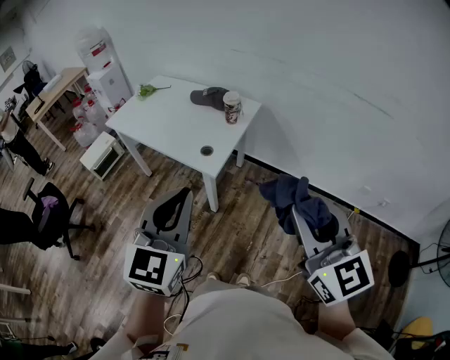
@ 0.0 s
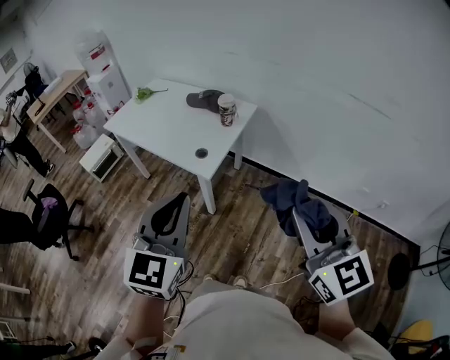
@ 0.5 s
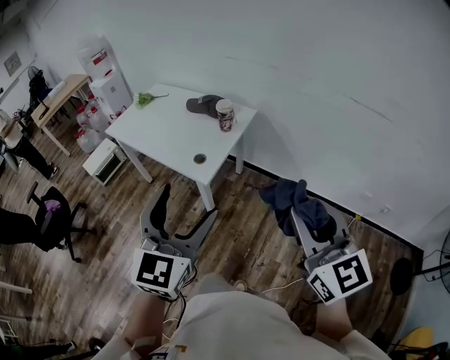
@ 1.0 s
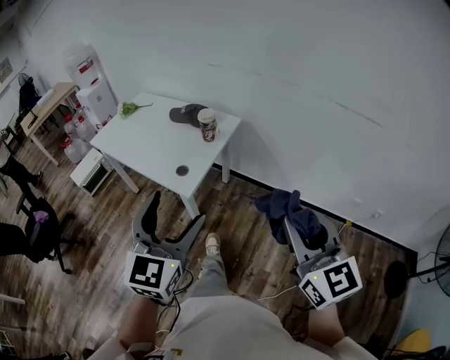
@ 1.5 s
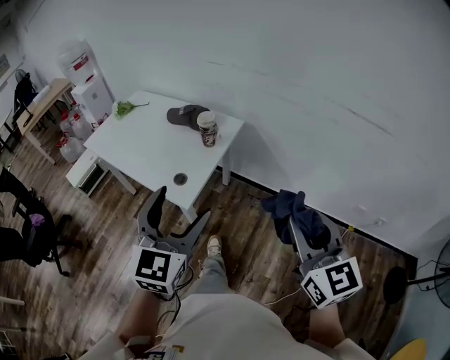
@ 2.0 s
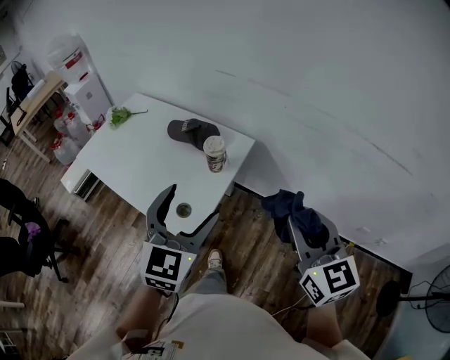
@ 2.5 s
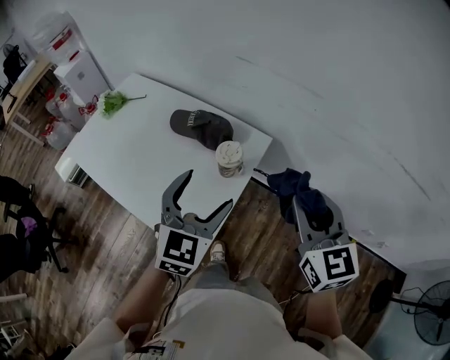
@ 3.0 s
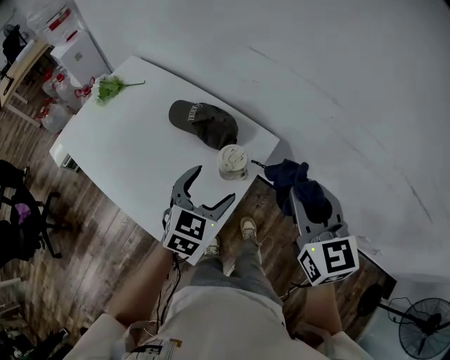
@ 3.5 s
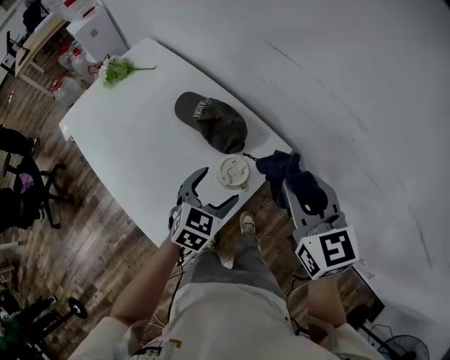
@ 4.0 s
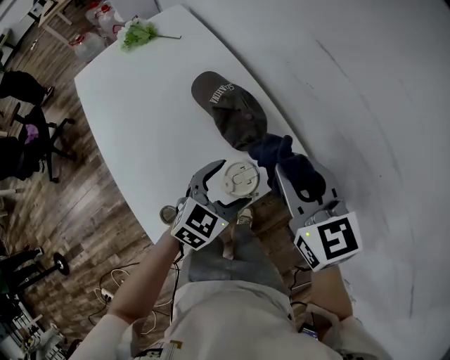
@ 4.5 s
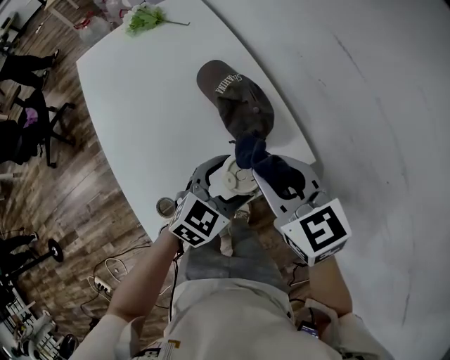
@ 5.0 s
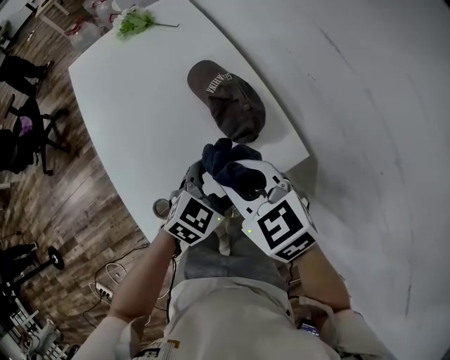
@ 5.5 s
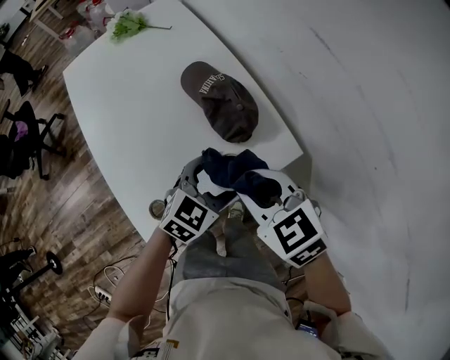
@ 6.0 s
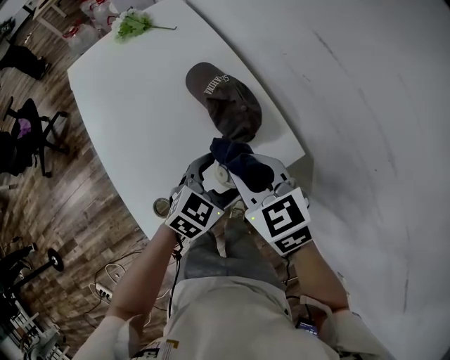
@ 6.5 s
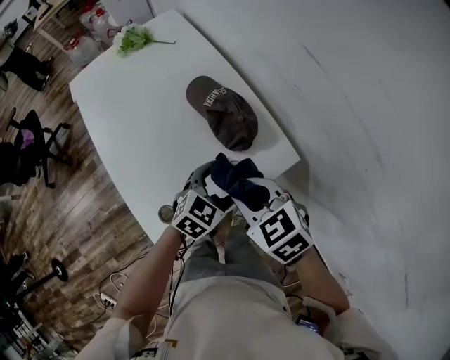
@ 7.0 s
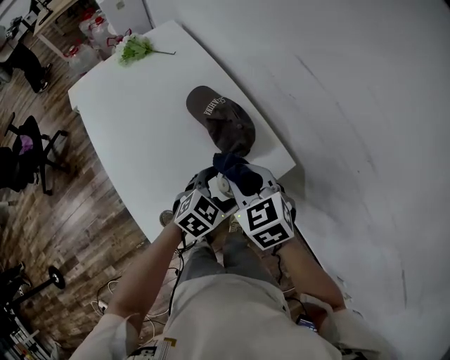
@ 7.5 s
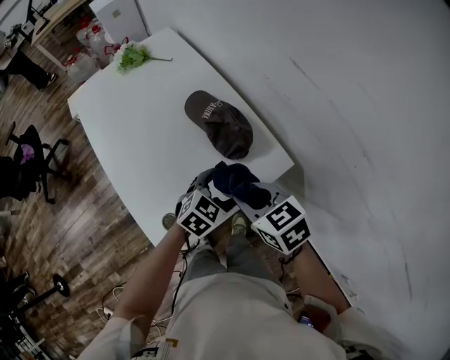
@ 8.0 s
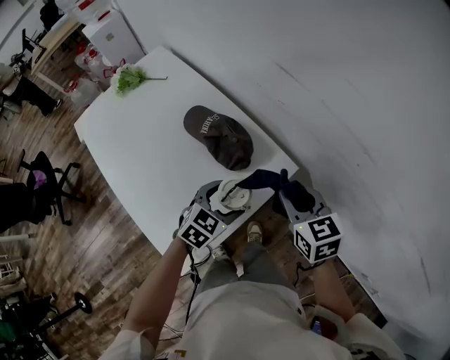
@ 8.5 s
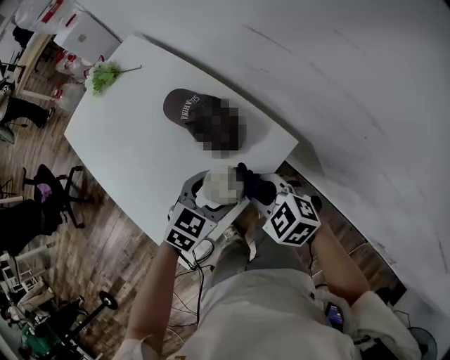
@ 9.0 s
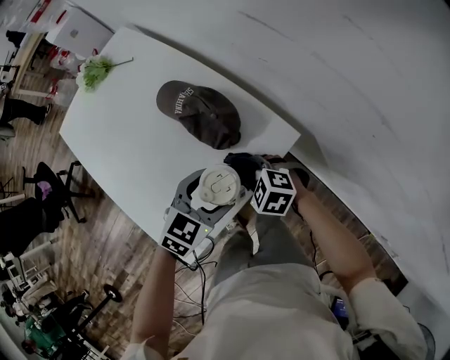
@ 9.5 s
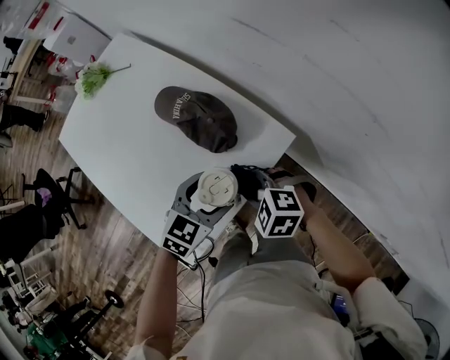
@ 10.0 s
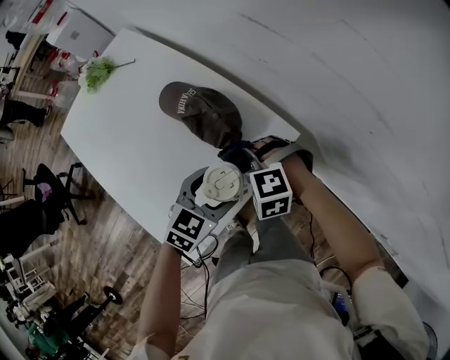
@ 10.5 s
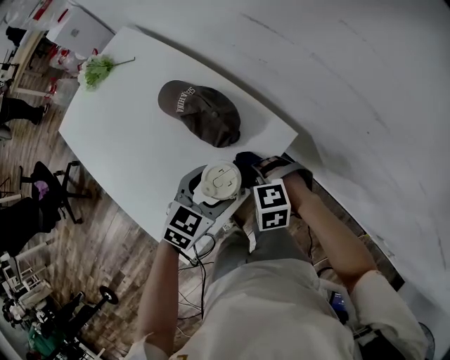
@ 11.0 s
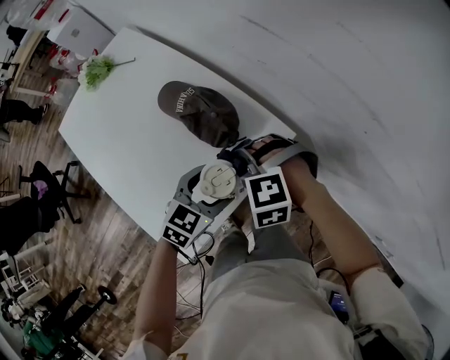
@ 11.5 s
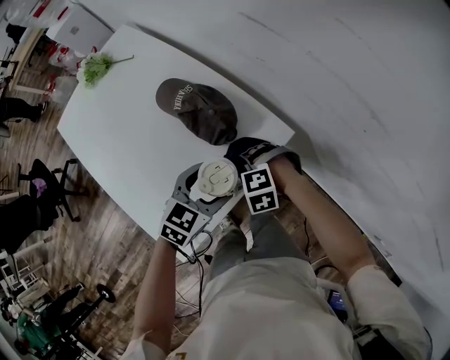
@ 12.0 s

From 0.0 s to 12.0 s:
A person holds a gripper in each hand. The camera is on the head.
From 0.0 s to 2.0 s: The left gripper heads forward and to the right, covering roughly 20 cm, and opens up, while the right gripper shifts approximately 20 cm forward, to the right and downward.
From 2.0 s to 4.0 s: Both grippers are carried forward, some 50 cm. The left gripper is displaced downward by some 25 cm, and points its fingers approximately 30 degrees further downward; the right gripper changes its angle by approximately 20 degrees.
From 4.0 s to 6.0 s: The right gripper moves downward and to the left, approximately 15 cm, and turns by some 50 degrees.
From 6.0 s to 8.0 s: The grippers stay close to where they were, moving slightly.
From 8.0 s to 10.0 s: The right gripper goes some 10 cm downward, and turns by approximately 30 degrees.
From 10.0 s to 12.0 s: The right gripper moves up and down over approximately 10 cm, changing direction 2 times, and swivels some 30 degrees.

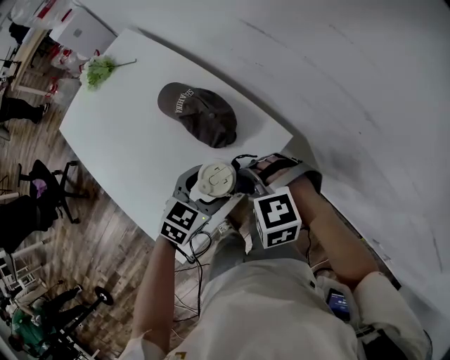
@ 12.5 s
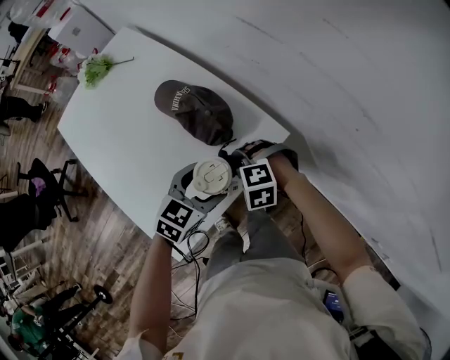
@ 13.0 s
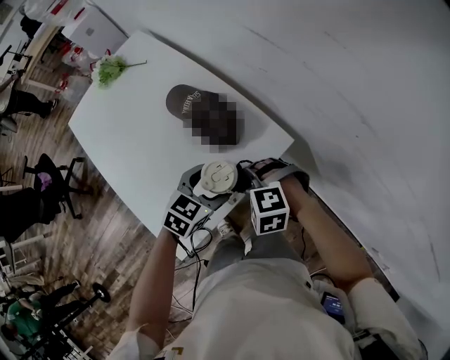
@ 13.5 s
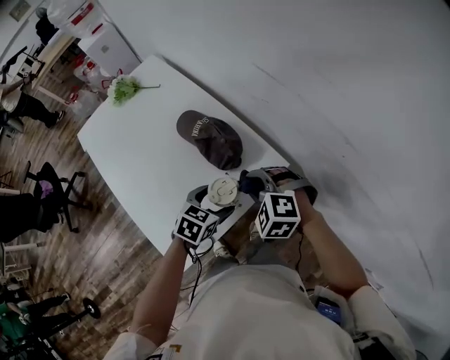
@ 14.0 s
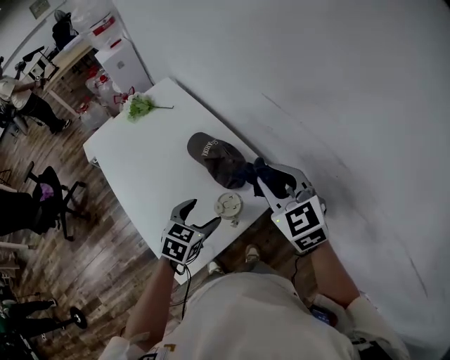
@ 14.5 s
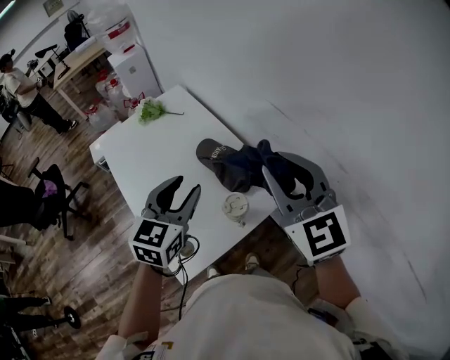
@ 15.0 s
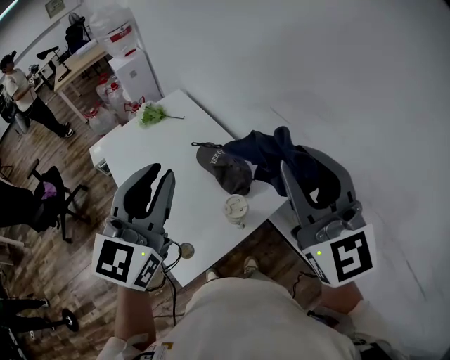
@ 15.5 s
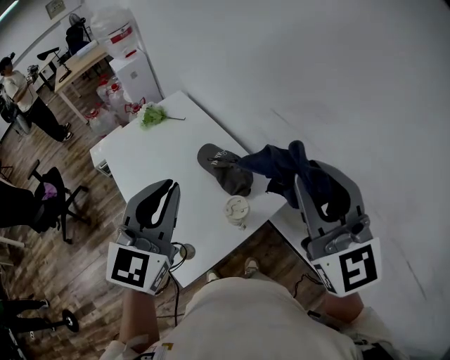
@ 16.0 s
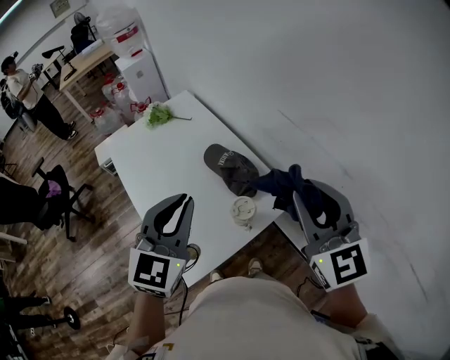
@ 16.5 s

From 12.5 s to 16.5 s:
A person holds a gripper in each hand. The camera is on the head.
From 12.5 s to 14.5 s: The left gripper is displaced to the left and upward by some 10 cm, while the right gripper goes roughly 20 cm upward, and tips its fingers upward by some 40 degrees.
From 14.5 s to 16.5 s: The right gripper heads upward and backward, covering some 15 cm, and rotates roughly 20 degrees; the left gripper goes about 25 cm upward, tilts its fingers approximately 30 degrees upward, and closes up.

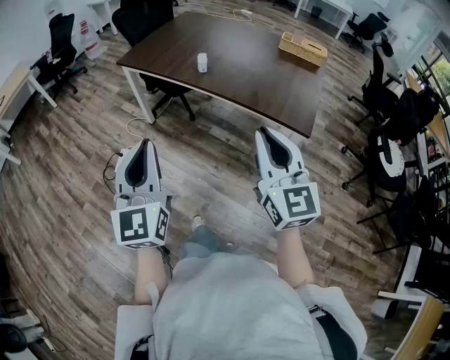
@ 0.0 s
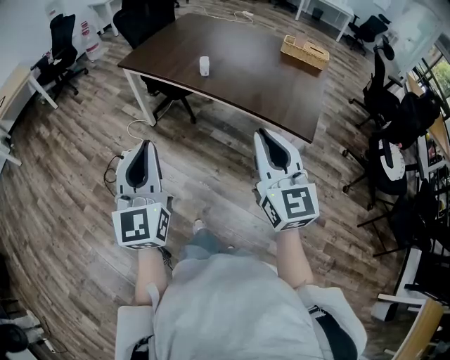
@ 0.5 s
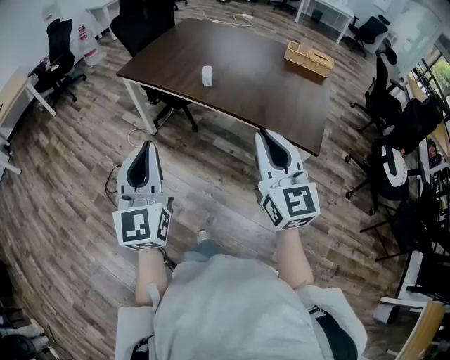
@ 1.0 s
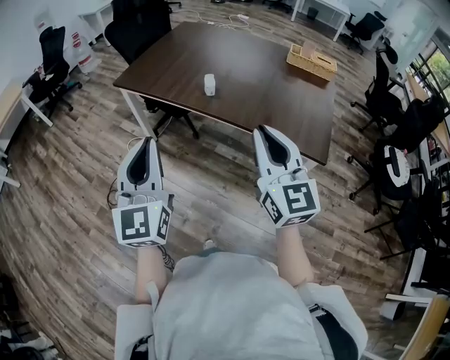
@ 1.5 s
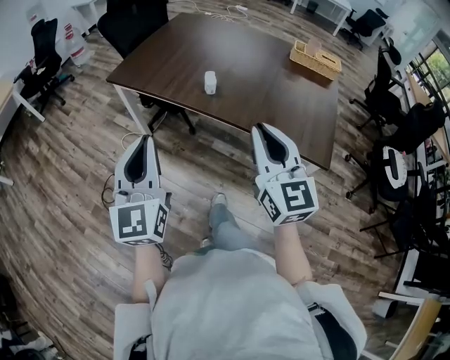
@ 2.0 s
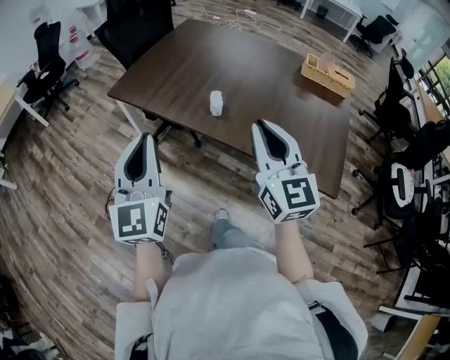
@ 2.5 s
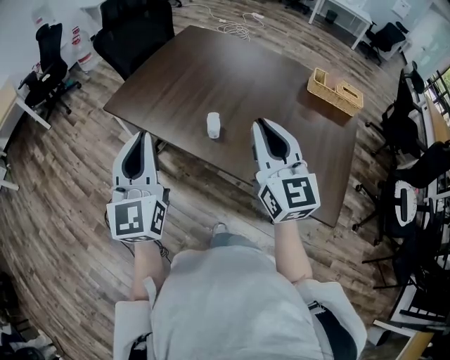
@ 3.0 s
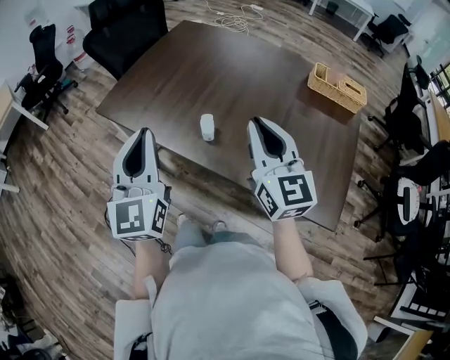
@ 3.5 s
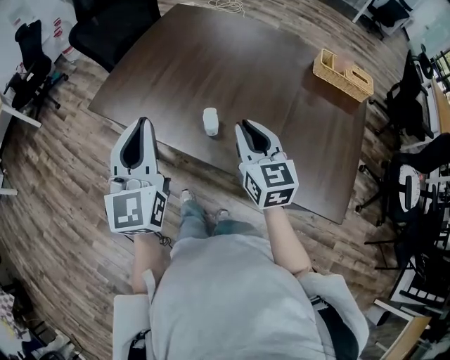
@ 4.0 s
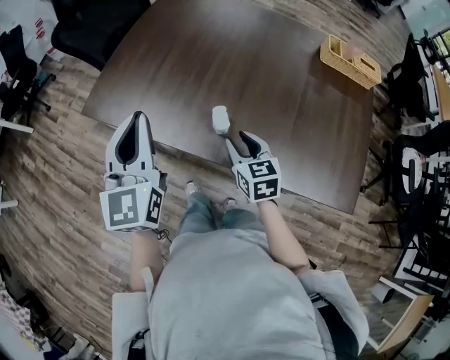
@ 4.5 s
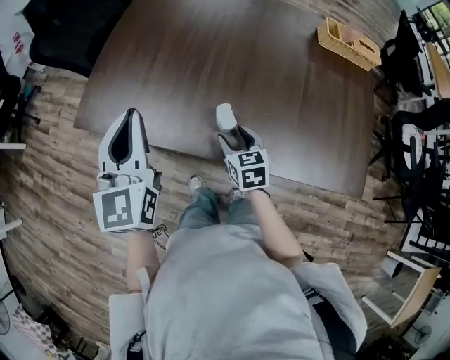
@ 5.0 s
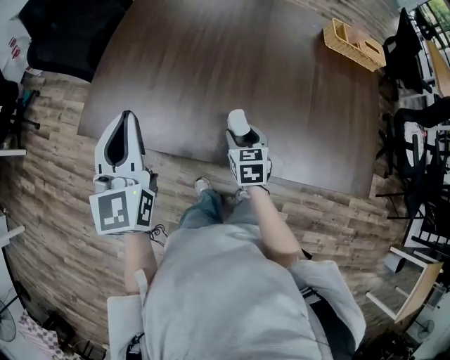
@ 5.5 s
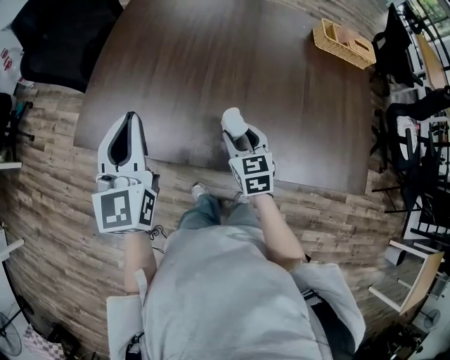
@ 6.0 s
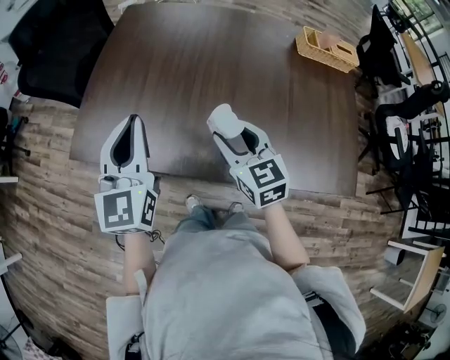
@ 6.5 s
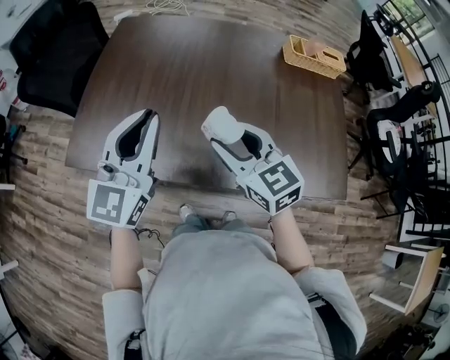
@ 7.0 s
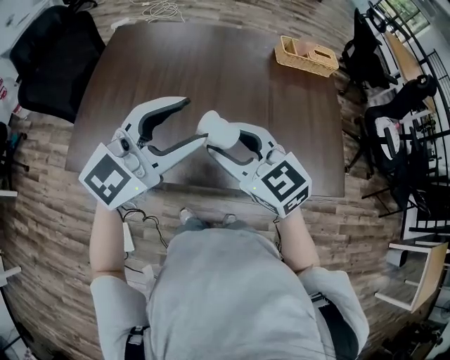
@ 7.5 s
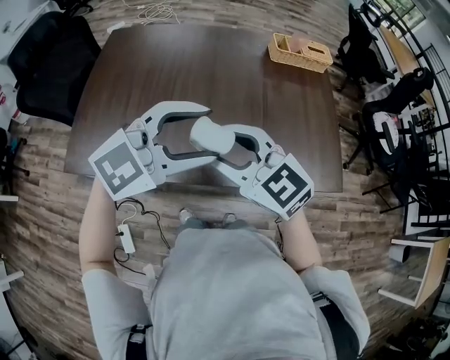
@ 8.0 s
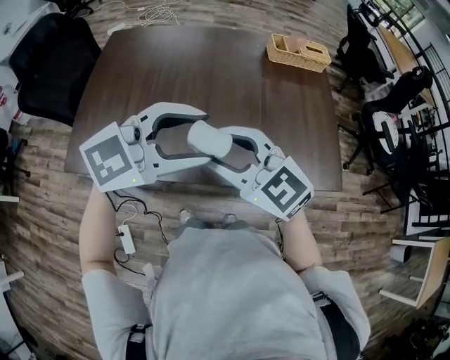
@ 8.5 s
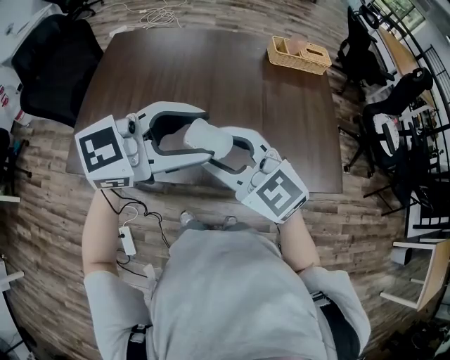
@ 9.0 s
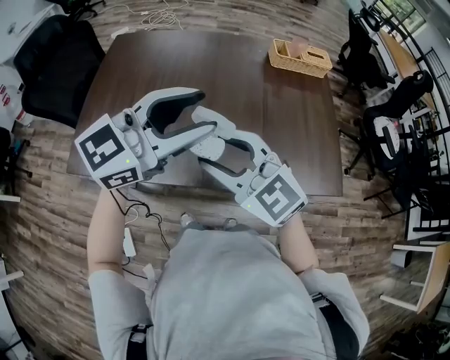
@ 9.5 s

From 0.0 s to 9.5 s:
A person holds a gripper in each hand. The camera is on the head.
From 0.0 s to 2.0 s: The grippers both shift forward by about 20 cm.
From 2.0 s to 4.0 s: The two grippers go approximately 30 cm forward.
From 4.0 s to 5.5 s: The right gripper is displaced downward by roughly 20 cm, rotates roughly 30 degrees, and opens up. Meanwhile the left gripper goes approximately 20 cm forward and to the left.
From 5.5 s to 7.5 s: The left gripper moves to the right, approximately 20 cm, swivels approximately 60 degrees, and opens its fingers. The right gripper shifts approximately 25 cm upward, and swivels approximately 40 degrees.
From 7.5 s to 9.5 s: The right gripper moves some 5 cm.

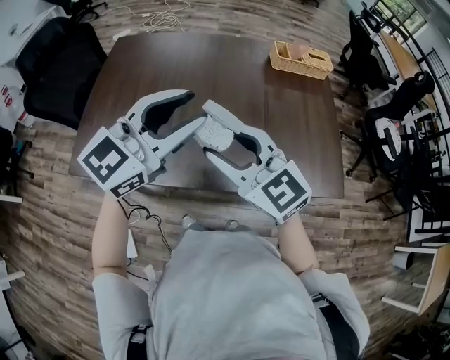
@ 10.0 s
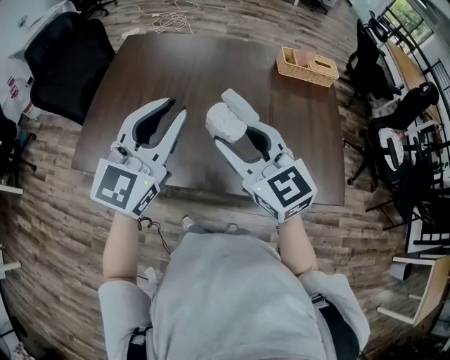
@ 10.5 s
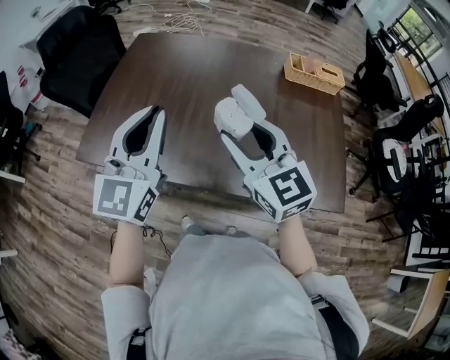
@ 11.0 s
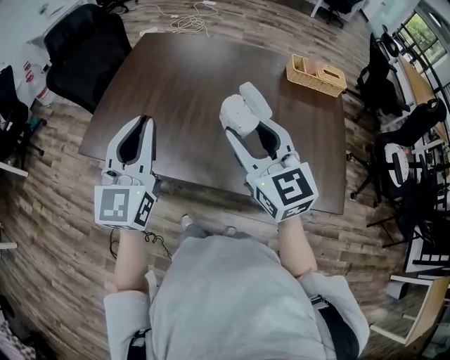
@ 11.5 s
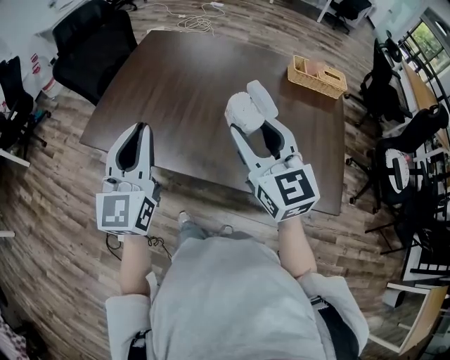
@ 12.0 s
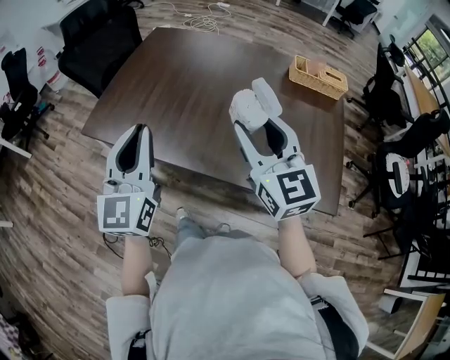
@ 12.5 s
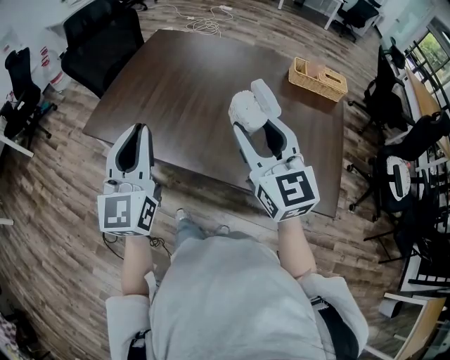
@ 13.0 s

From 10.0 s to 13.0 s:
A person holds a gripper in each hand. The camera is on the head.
From 10.0 s to 11.5 s: The left gripper goes roughly 10 cm to the left, changes its angle by some 50 degrees, and closes. The right gripper ends up roughly 5 cm from where it was.
From 11.5 s to 13.0 s: The grippers both shift backward by roughly 5 cm.
